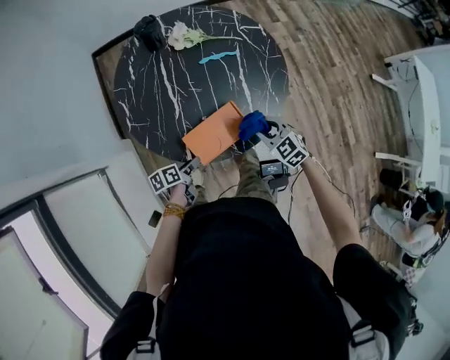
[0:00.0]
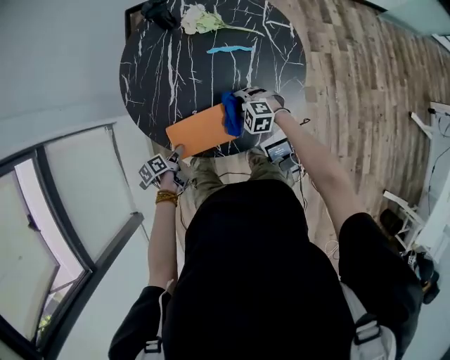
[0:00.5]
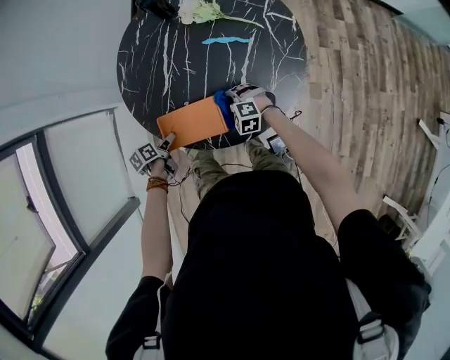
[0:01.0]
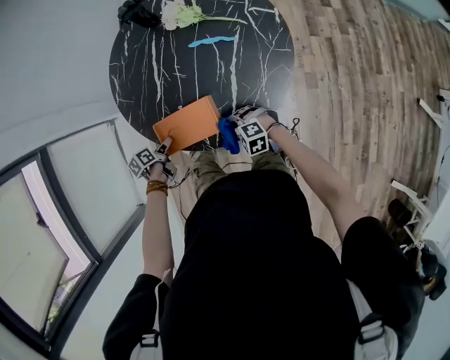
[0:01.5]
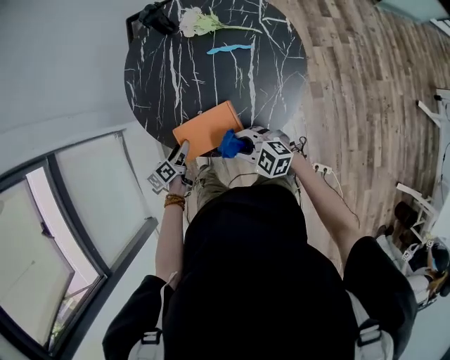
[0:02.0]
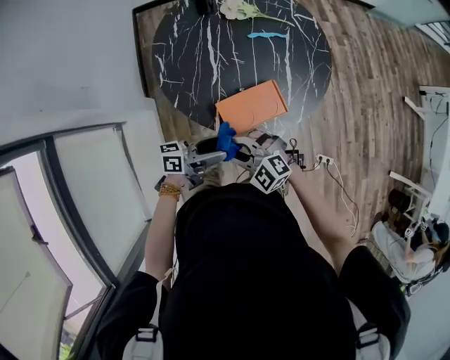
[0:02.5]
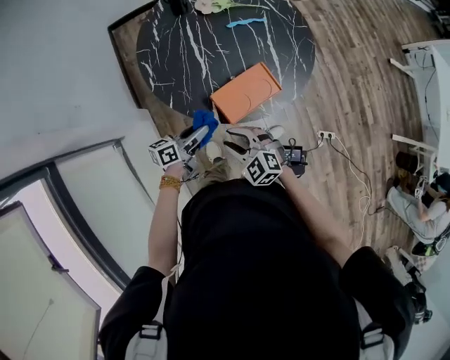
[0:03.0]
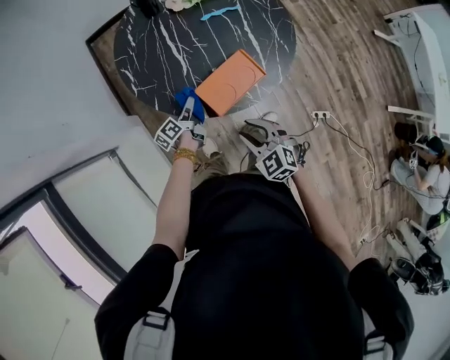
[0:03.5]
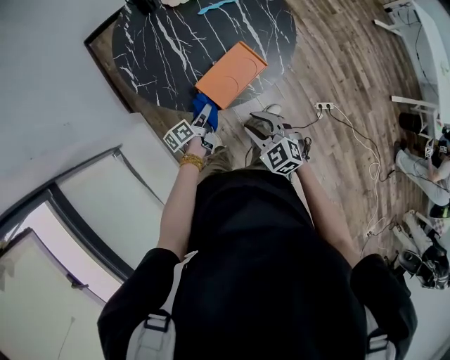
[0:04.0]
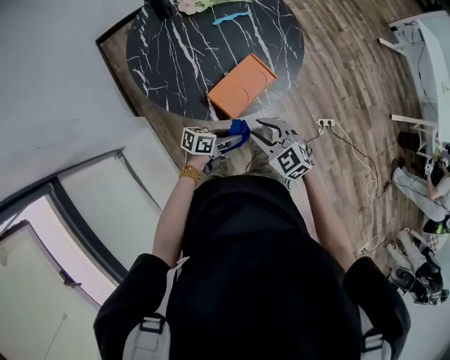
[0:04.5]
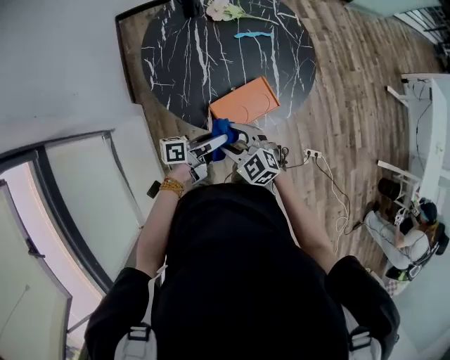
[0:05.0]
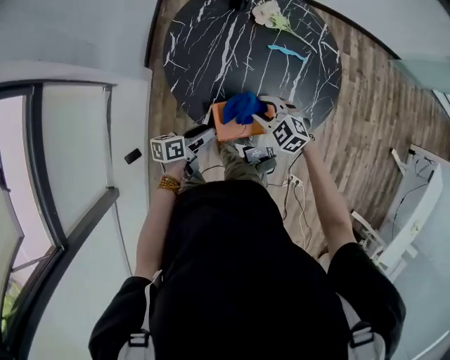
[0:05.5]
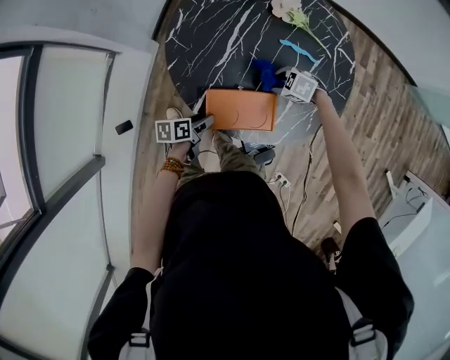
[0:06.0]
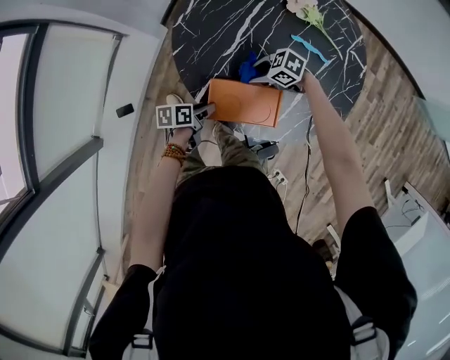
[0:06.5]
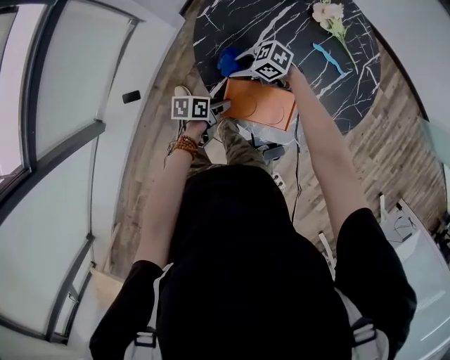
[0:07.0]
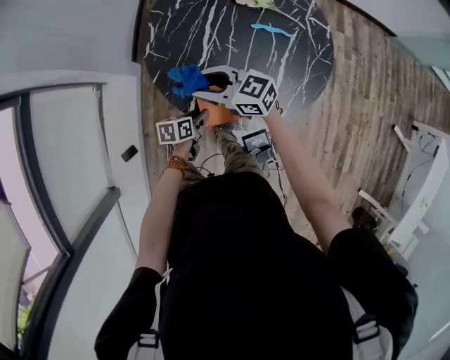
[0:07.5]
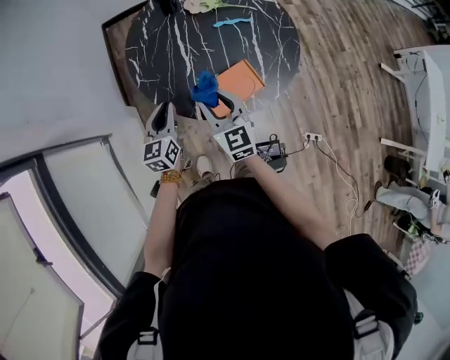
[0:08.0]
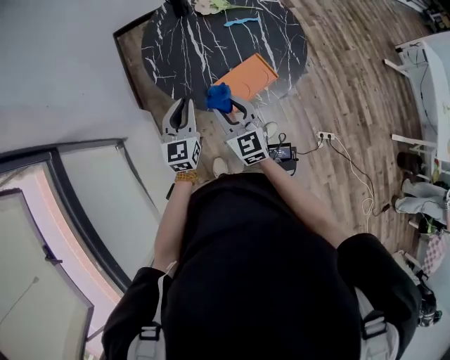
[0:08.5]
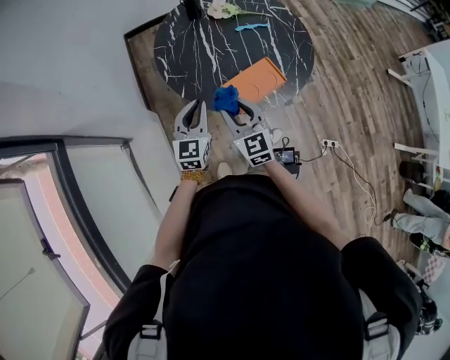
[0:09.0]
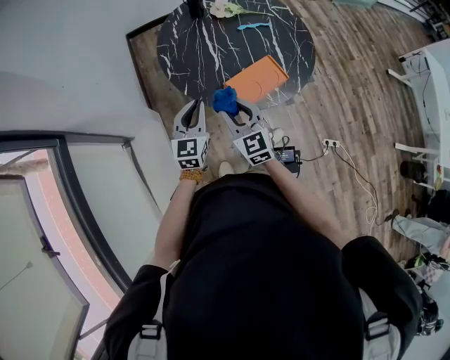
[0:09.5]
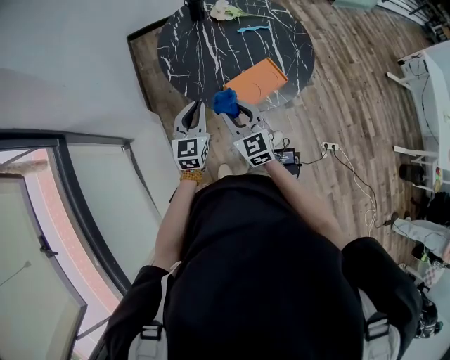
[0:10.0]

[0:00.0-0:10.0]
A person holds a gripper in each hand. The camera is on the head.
0:00.0 to 0:02.0: The left gripper rotates roughly 30 degrees; the right gripper travels downward and back again, roughly 15 cm each way, and turns by approximately 40 degrees.
0:02.0 to 0:04.0: The right gripper shifts by about 15 cm, and changes its angle by some 50 degrees. Meanwhile the left gripper goes upward and returns, some 15 cm each way, turns by roughly 30 degrees, and closes its fingers.
0:04.0 to 0:06.0: The right gripper shifts by some 35 cm, and turns by roughly 70 degrees. Meanwhile the left gripper moves about 15 cm upward and comes back, and turns by some 20 degrees.
0:06.0 to 0:08.0: The two grippers go about 20 cm upward. The left gripper rotates around the line of its fingers by roughly 50 degrees, clockwise from behind, and closes. The right gripper tilts its fingers some 50 degrees upward.
0:08.0 to 0:10.0: The right gripper heads backward and to the left, covering about 10 cm. Meanwhile the left gripper travels backward by roughly 5 cm.

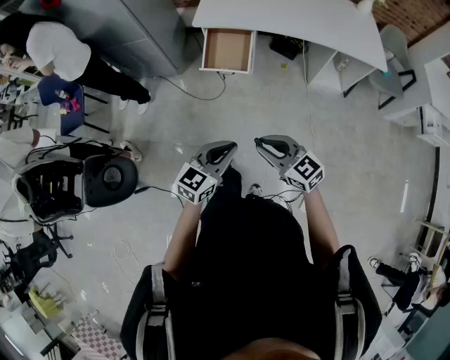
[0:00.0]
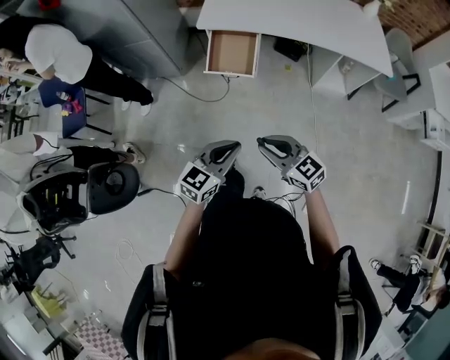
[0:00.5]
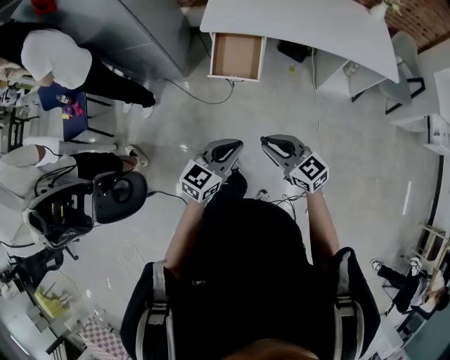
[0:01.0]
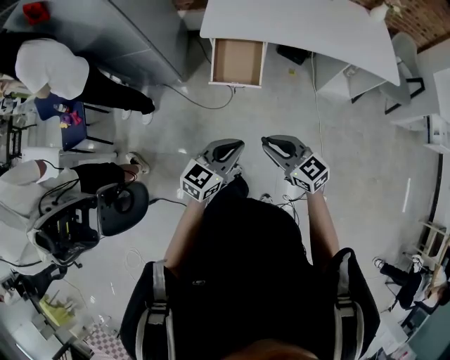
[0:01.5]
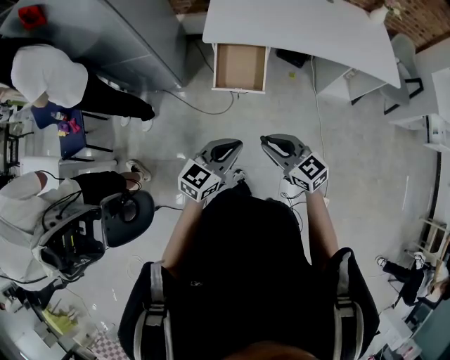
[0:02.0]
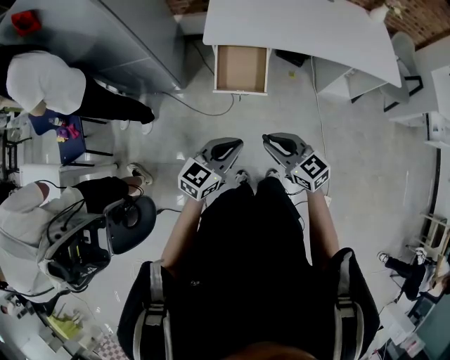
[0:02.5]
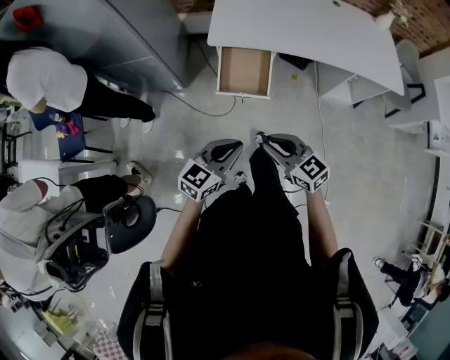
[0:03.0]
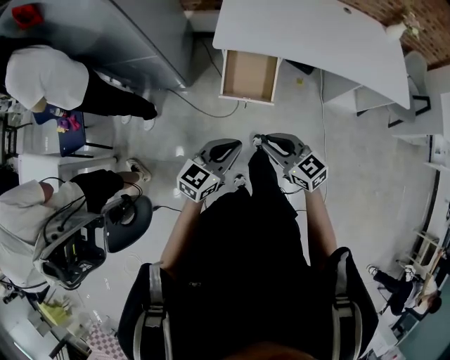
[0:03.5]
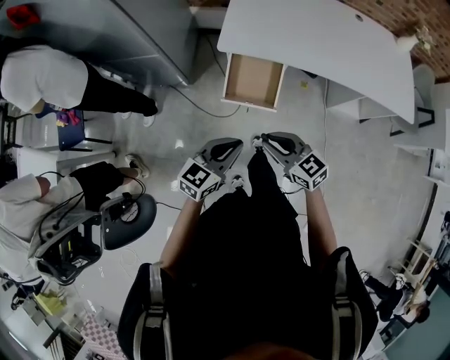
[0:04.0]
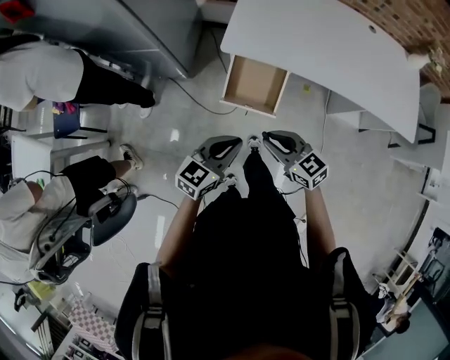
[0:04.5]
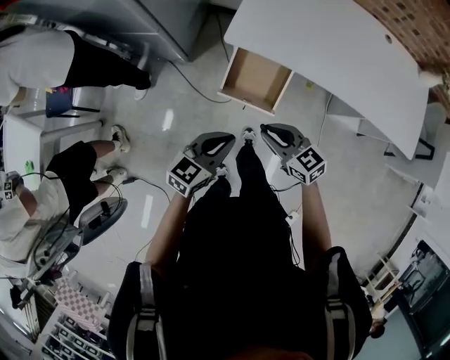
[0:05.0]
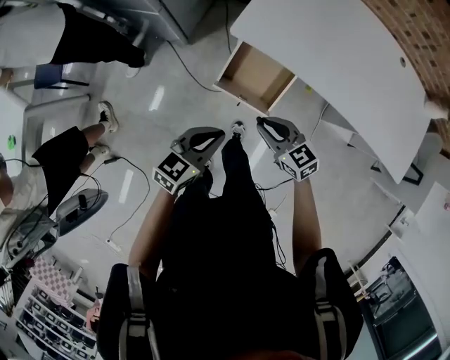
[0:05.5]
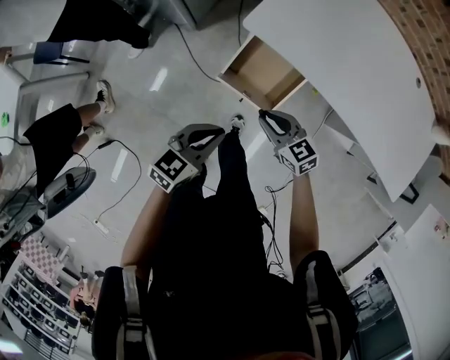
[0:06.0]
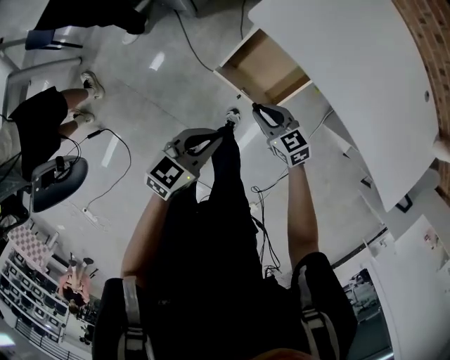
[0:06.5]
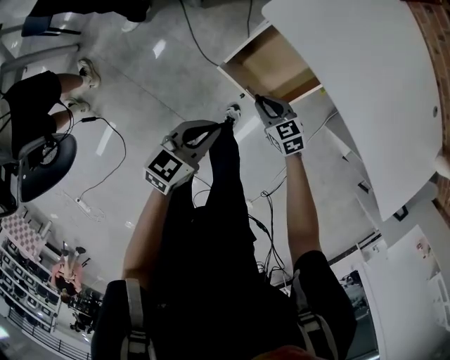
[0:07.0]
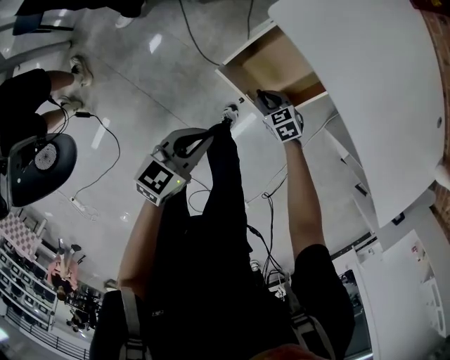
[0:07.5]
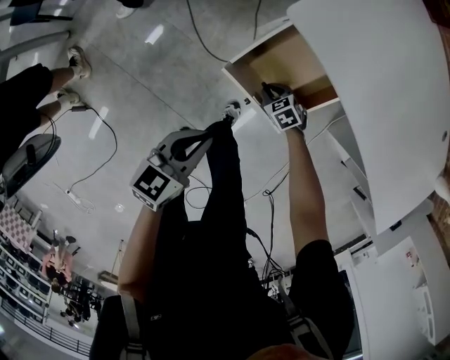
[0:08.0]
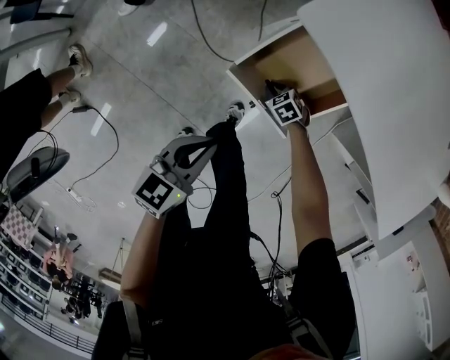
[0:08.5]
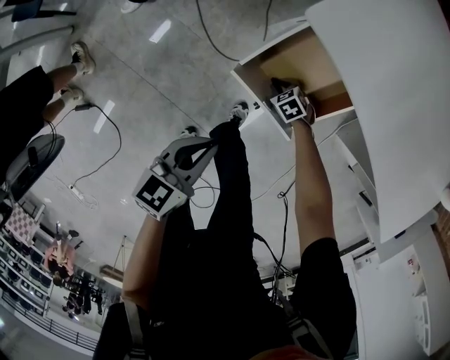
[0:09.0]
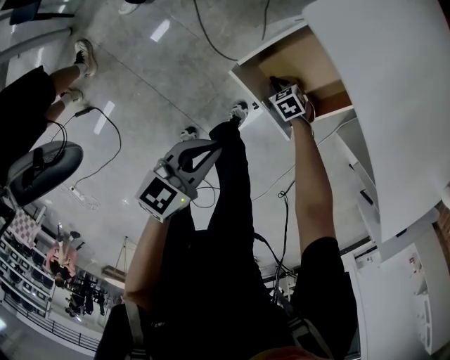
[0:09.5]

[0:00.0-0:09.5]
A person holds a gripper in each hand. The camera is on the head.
0:00.0 to 0:02.0: The grippers both shift forward and to the left by some 20 cm.
0:02.0 to 0:04.0: Both grippers move forward, roughly 15 cm.
0:04.0 to 0:05.5: The two grippers go about 15 cm forward and downward.
0:05.5 to 0:07.5: The right gripper moves downward, about 30 cm, and changes its angle by about 30 degrees. The left gripper heads downward, covering some 15 cm.
0:07.5 to 0:09.5: The right gripper heads downward, covering approximately 15 cm.

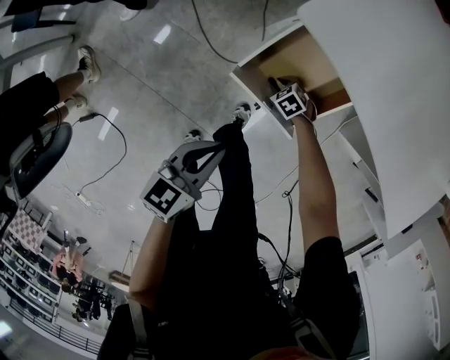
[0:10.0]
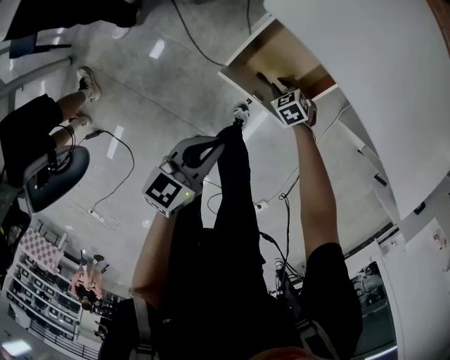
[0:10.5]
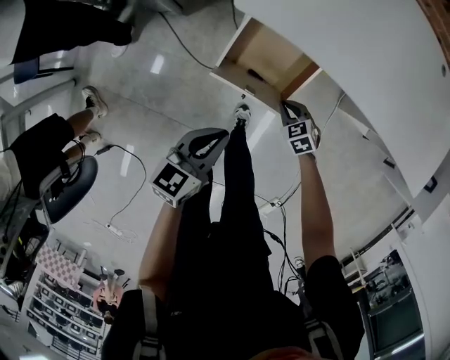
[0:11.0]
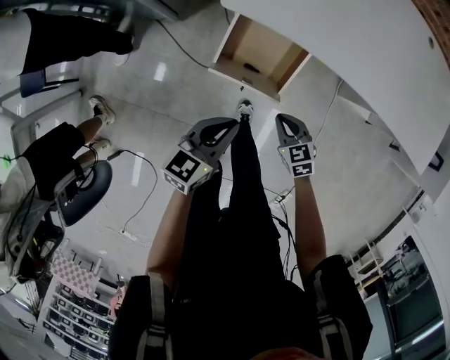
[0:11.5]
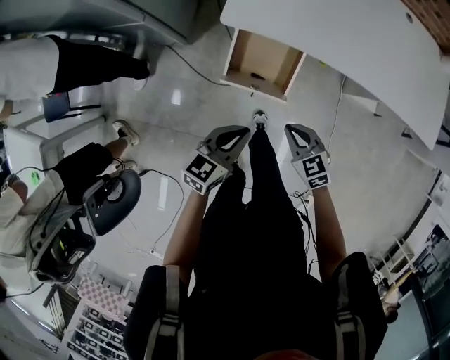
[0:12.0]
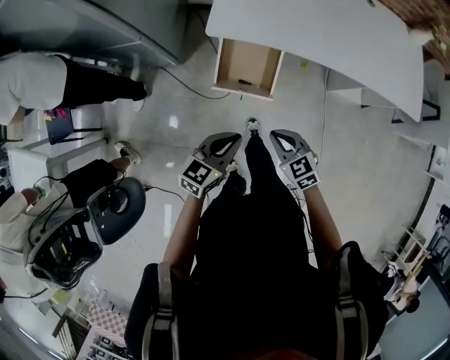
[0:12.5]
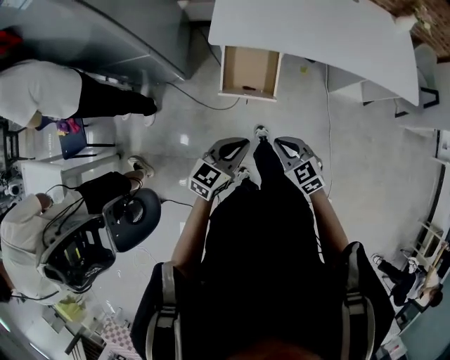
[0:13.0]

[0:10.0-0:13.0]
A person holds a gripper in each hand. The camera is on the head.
0:10.0 to 0:11.5: The right gripper goes some 25 cm upward, swivels roughly 40 degrees, and closes up, while the left gripper is displaced upward by about 5 cm, and swivels about 20 degrees.
0:11.5 to 0:13.0: The right gripper moves upward and backward, roughly 25 cm, while the left gripper moves backward and upward, approximately 15 cm, and changes its angle by some 20 degrees.

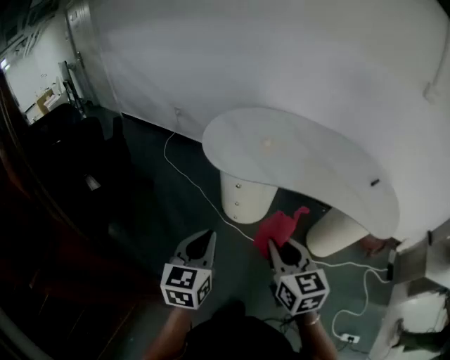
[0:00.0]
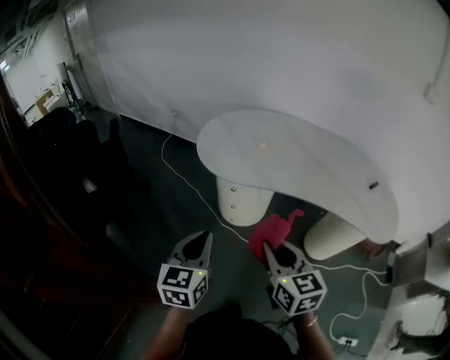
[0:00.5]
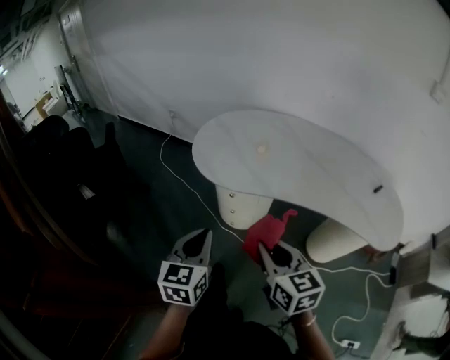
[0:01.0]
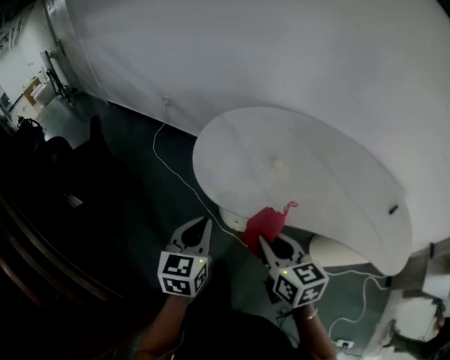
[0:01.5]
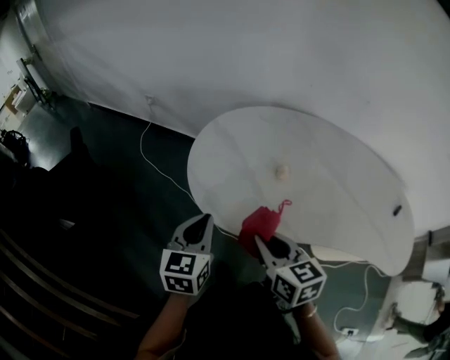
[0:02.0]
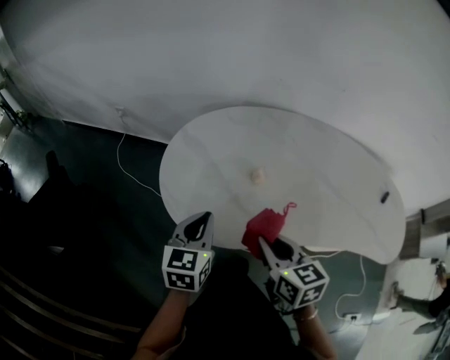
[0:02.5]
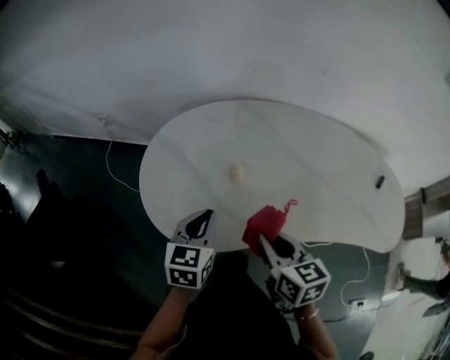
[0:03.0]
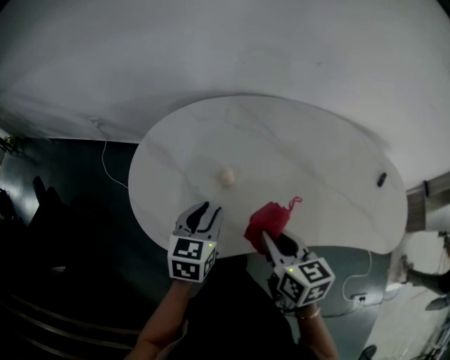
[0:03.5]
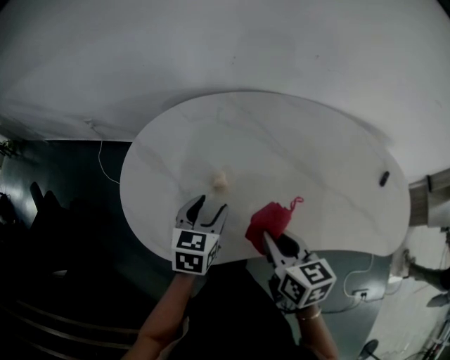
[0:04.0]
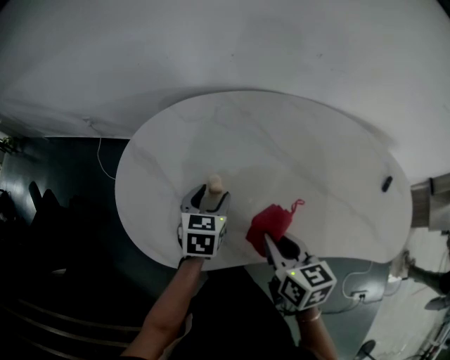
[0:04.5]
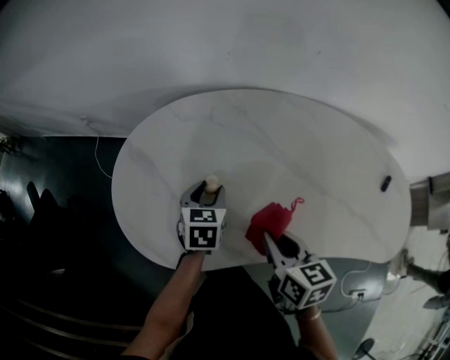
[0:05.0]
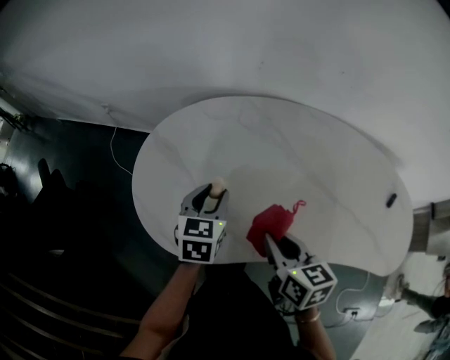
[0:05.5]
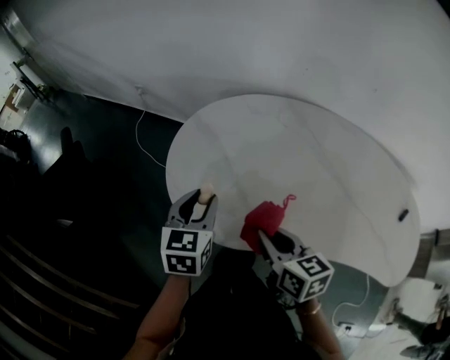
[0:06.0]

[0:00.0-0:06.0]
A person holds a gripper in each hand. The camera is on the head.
0:00.0 to 0:02.0: The grippers both shift forward by roughly 30 cm.
0:02.0 to 0:04.0: The grippers both shift to the right and forward by some 20 cm. The right gripper turns by some 20 degrees. The left gripper turns by approximately 20 degrees, and opens its fingers.
0:04.0 to 0:06.0: Both grippers move to the left, about 15 cm. The right gripper rotates approximately 20 degrees. Meanwhile the left gripper turns by approximately 20 degrees.
